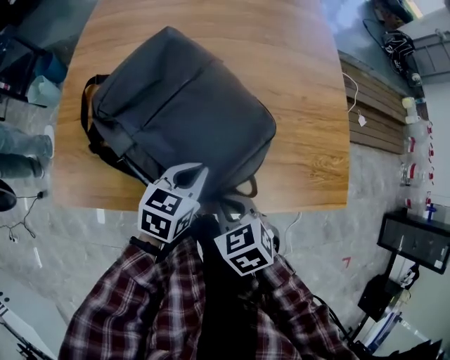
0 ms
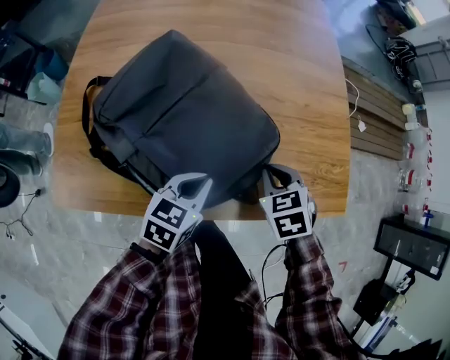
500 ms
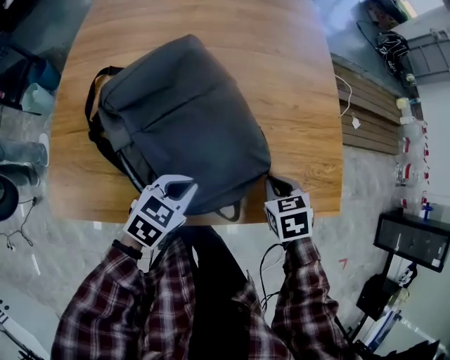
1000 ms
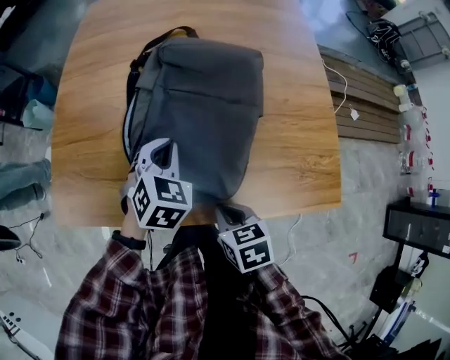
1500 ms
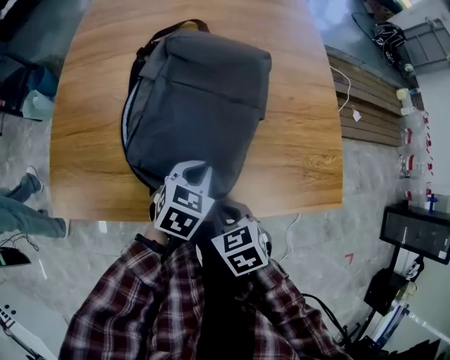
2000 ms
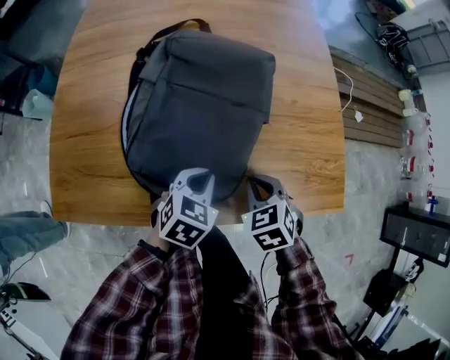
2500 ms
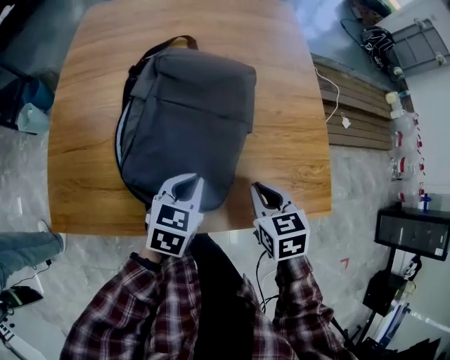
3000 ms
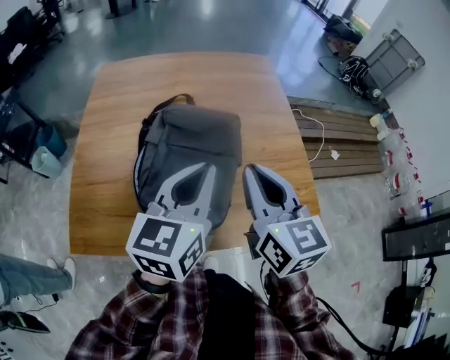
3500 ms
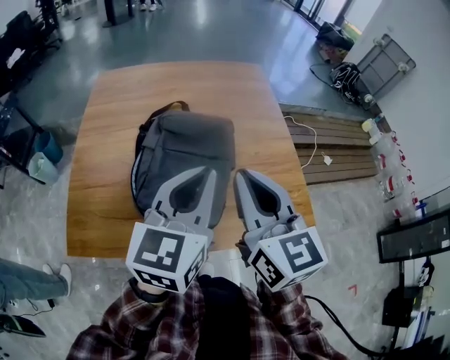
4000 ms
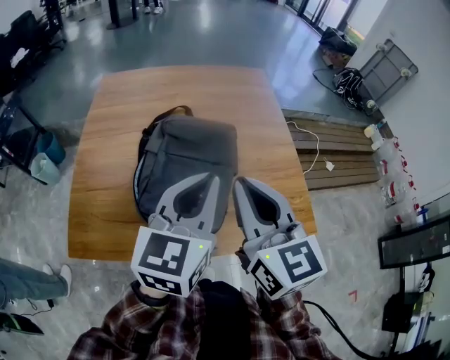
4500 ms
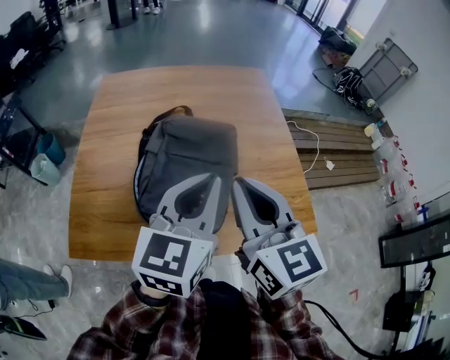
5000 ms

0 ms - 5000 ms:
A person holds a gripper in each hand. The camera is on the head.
0 ms - 2500 ms: The left gripper changes its angle by about 20 degrees. Meanwhile the right gripper changes place by roughly 15 cm.
2500 ms - 5000 ms: The two grippers go some 35 cm upward. The right gripper angles its fingers upward, by about 50 degrees. Meanwhile the left gripper points its fingers about 40 degrees further upward.

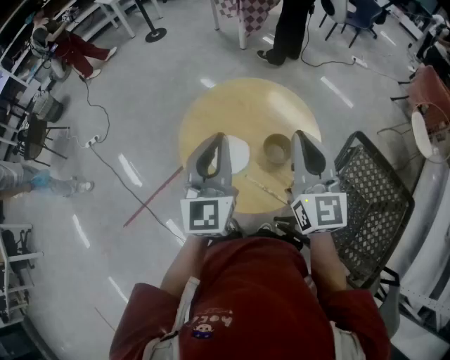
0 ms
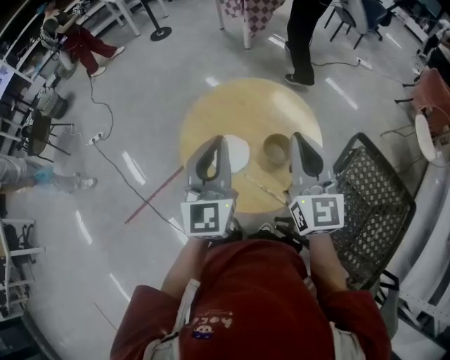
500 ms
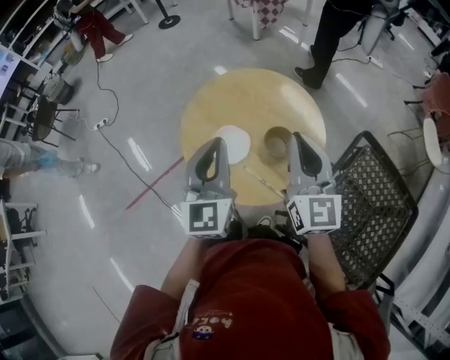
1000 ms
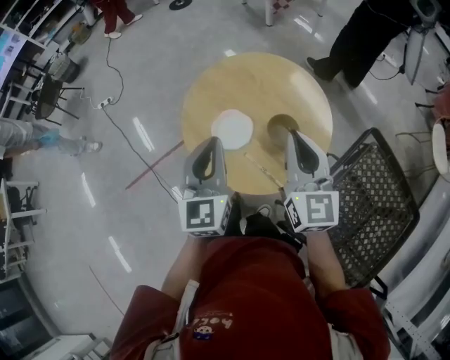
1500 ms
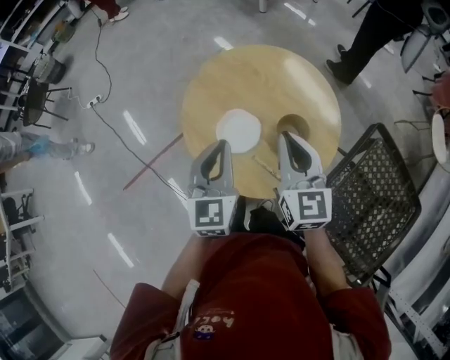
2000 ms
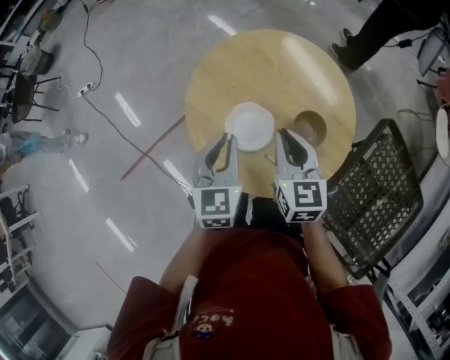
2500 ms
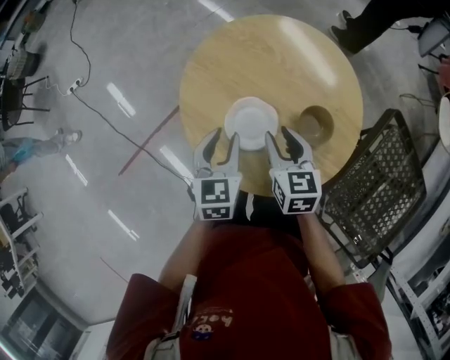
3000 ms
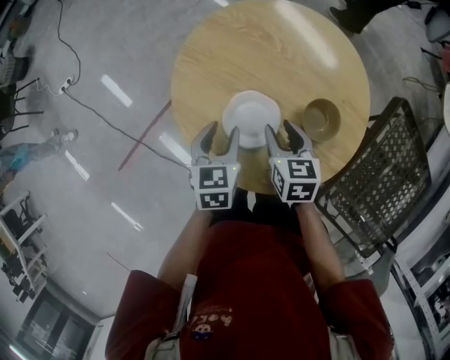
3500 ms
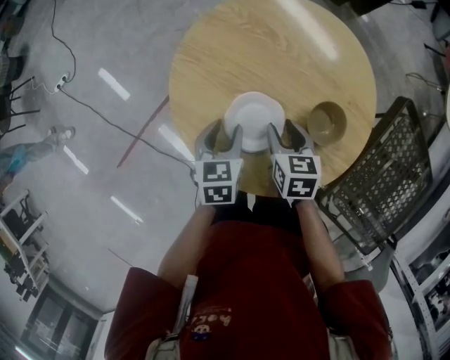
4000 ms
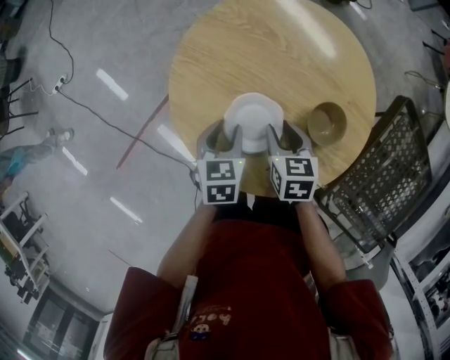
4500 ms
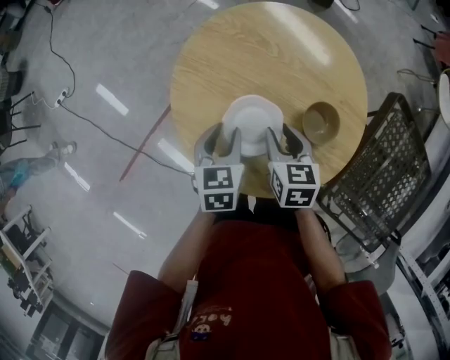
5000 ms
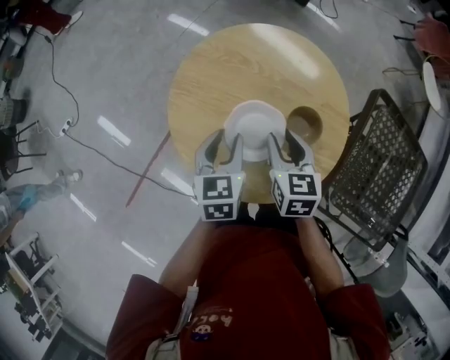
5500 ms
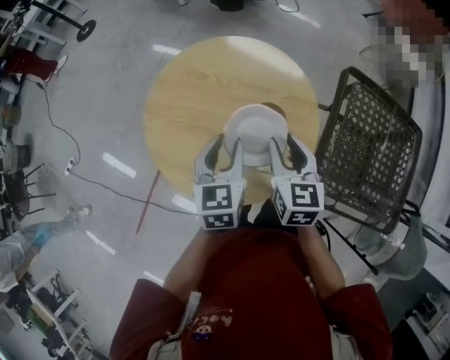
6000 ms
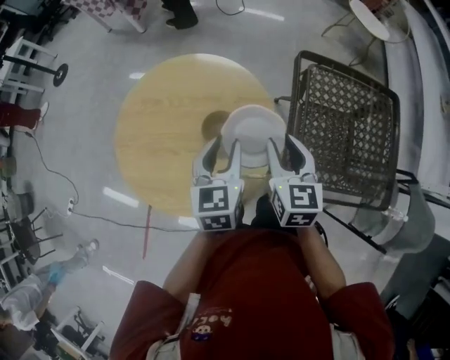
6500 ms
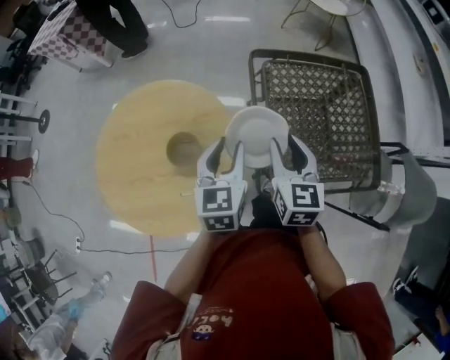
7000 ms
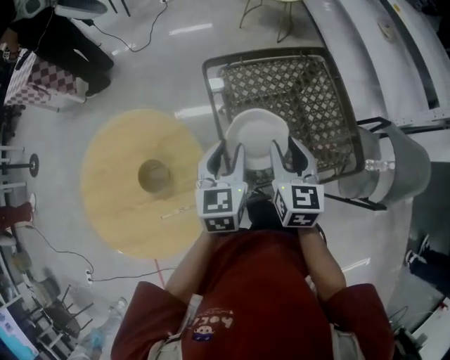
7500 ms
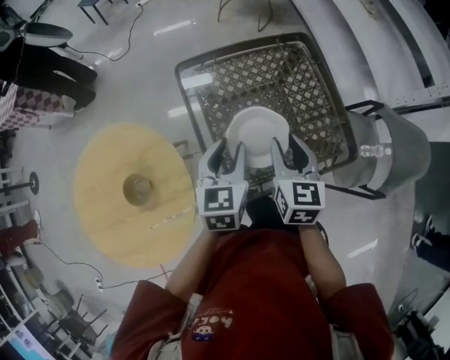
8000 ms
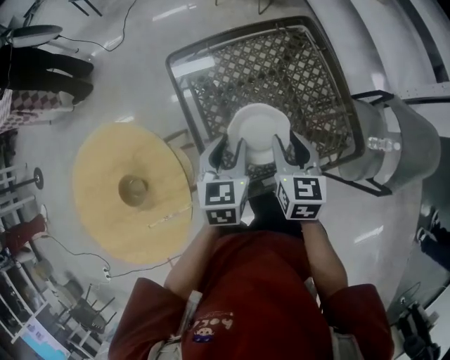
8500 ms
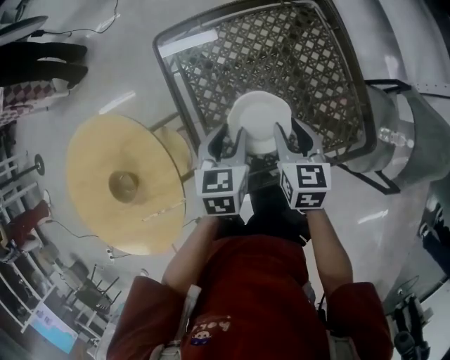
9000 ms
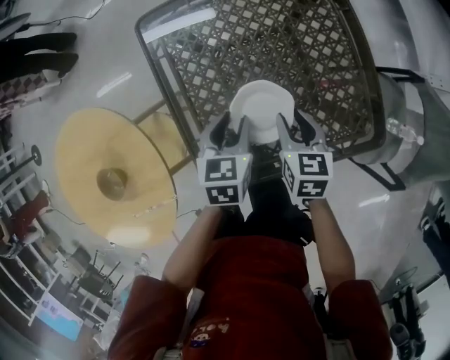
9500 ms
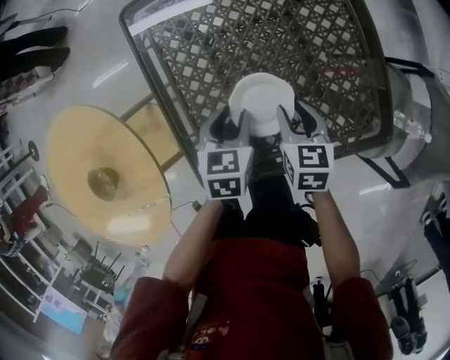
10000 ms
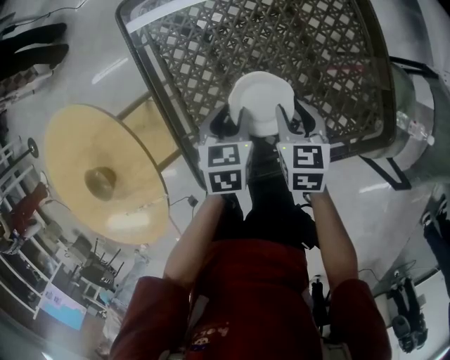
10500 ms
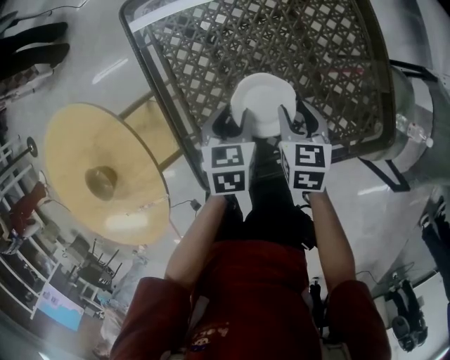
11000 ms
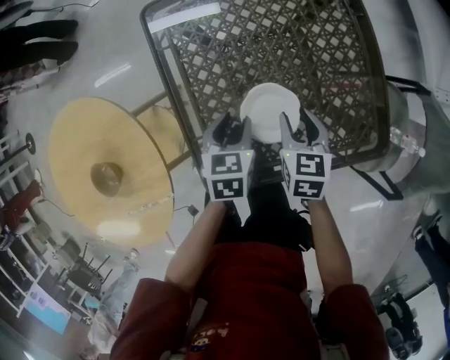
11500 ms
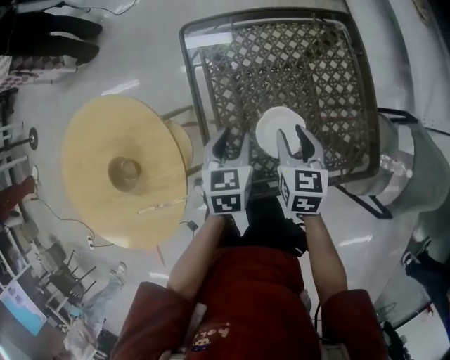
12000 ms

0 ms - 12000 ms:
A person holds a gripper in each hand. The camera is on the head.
0 ms - 2000 ms: Both grippers travel together downward, about 10 cm.
2000 ms - 4000 ms: Both grippers move downward, some 25 cm. The right gripper tips its fingers downward by about 40 degrees, and opens up; the left gripper angles its fingers downward, by some 30 degrees, and opens.
4000 ms - 6000 ms: The grippers both shift upward and to the right by some 20 cm. The left gripper turns by approximately 20 degrees; the right gripper turns by roughly 30 degrees.
6000 ms - 8000 ms: Both grippers are carried roughly 50 cm. The right gripper swivels approximately 40 degrees. Meanwhile the left gripper turns by about 40 degrees.
8000 ms - 10000 ms: Both grippers move downward, roughly 25 cm. The left gripper swivels some 20 degrees, while the right gripper swivels roughly 20 degrees.
10000 ms - 12000 ms: The grippers both shift upward and to the left by approximately 10 cm.

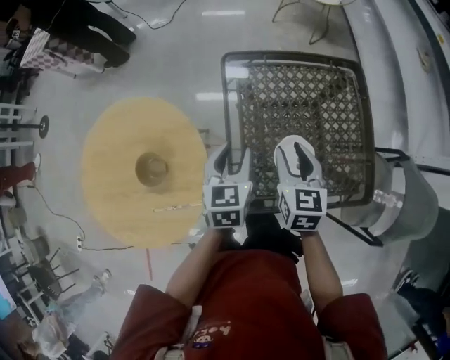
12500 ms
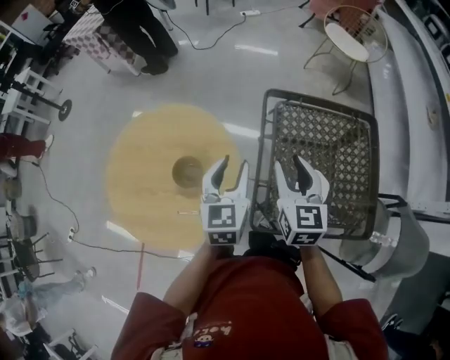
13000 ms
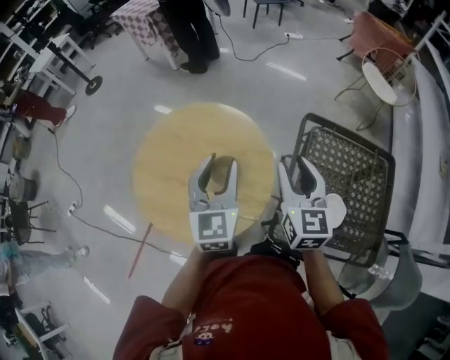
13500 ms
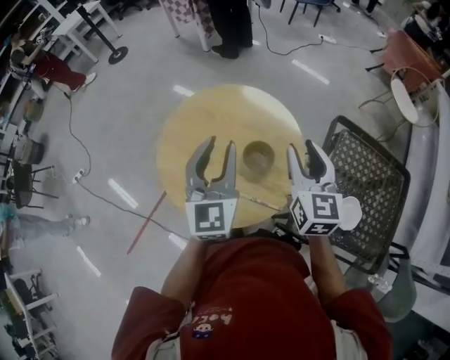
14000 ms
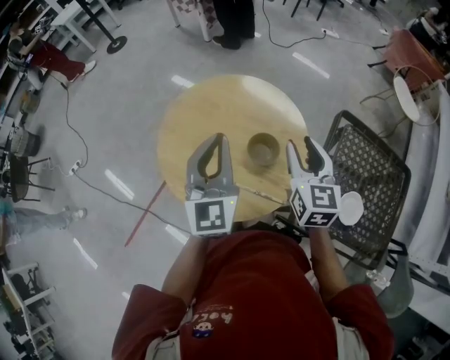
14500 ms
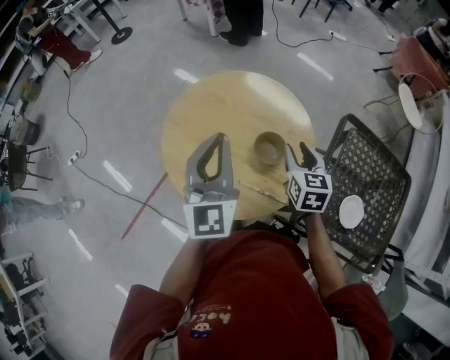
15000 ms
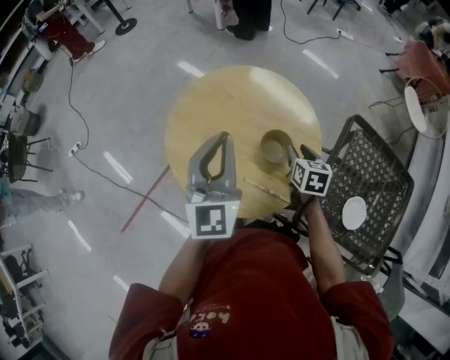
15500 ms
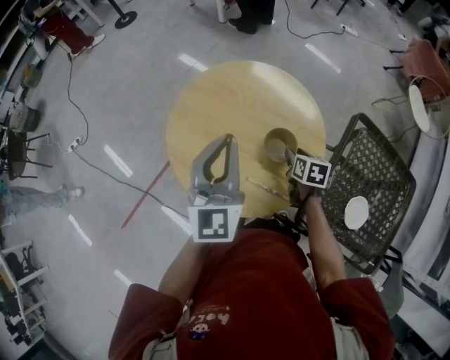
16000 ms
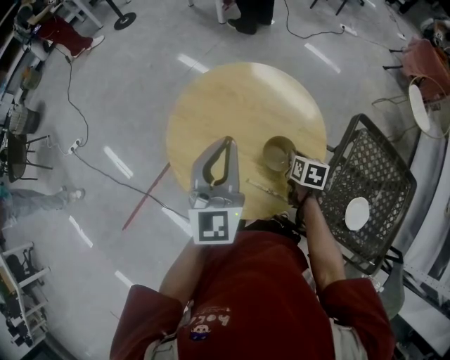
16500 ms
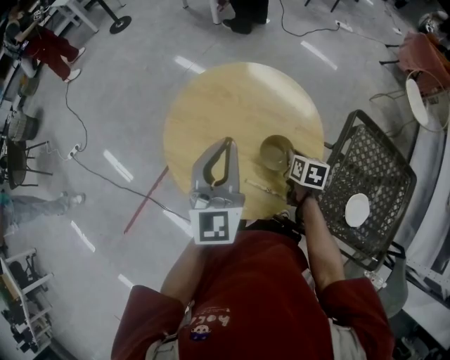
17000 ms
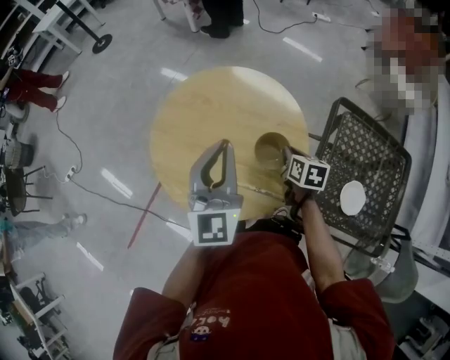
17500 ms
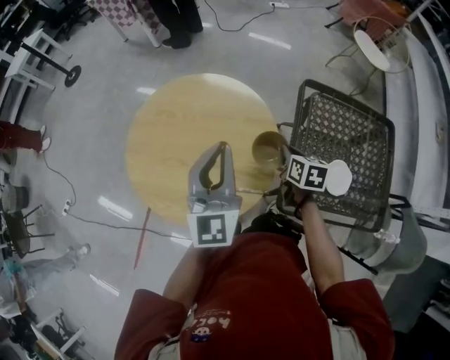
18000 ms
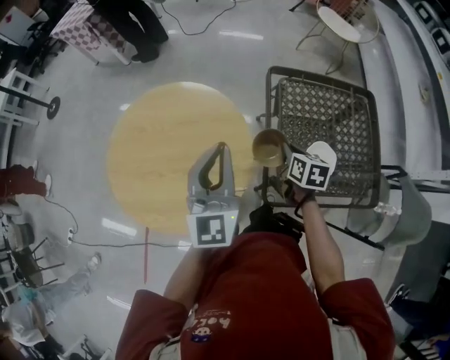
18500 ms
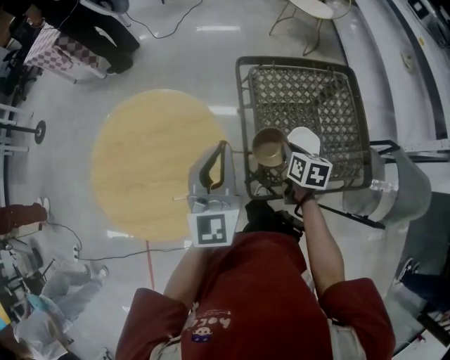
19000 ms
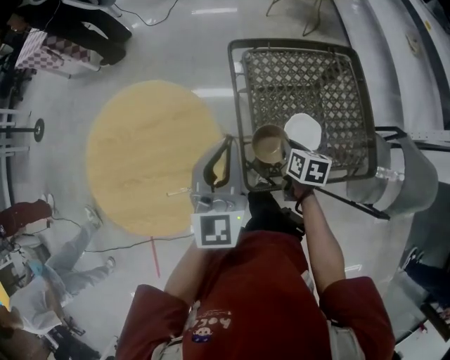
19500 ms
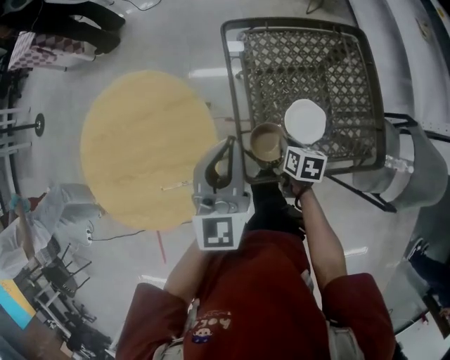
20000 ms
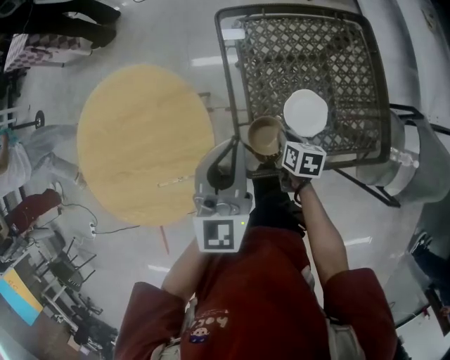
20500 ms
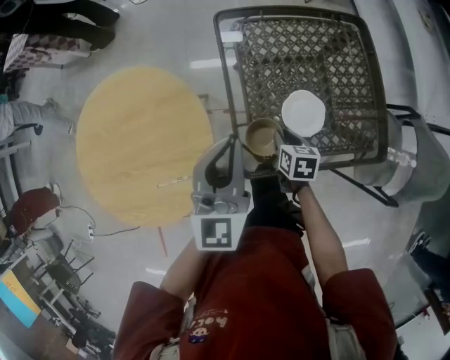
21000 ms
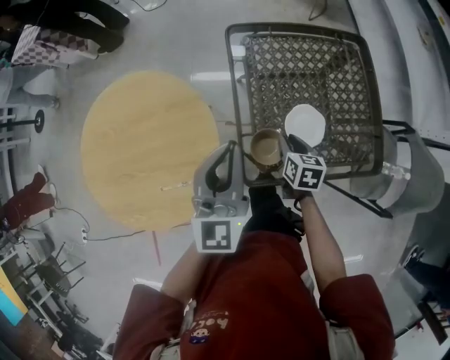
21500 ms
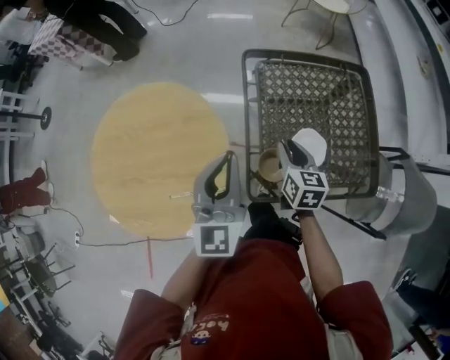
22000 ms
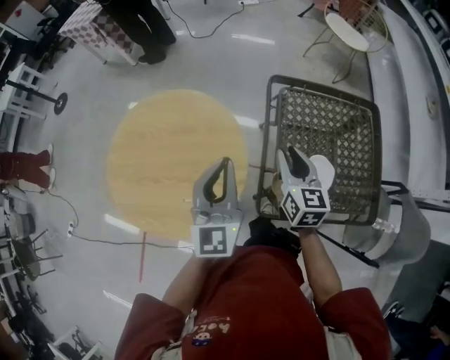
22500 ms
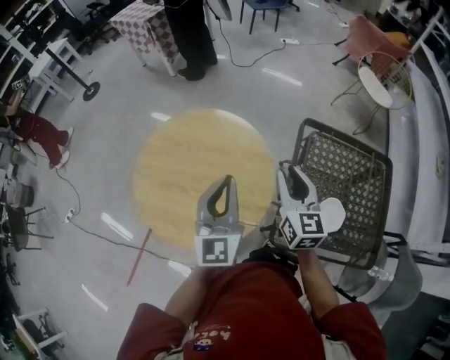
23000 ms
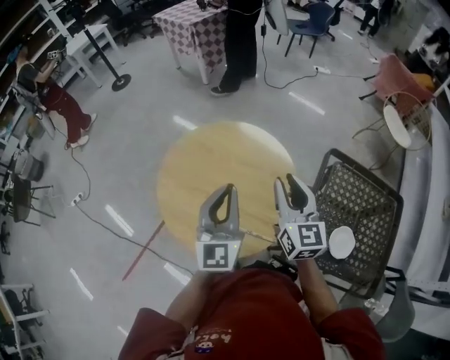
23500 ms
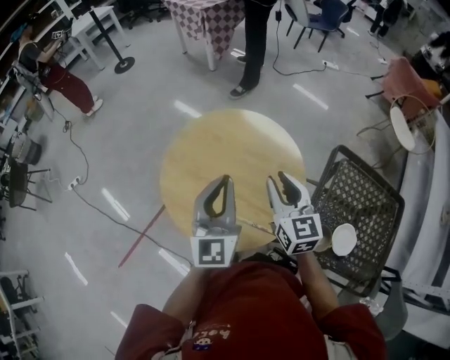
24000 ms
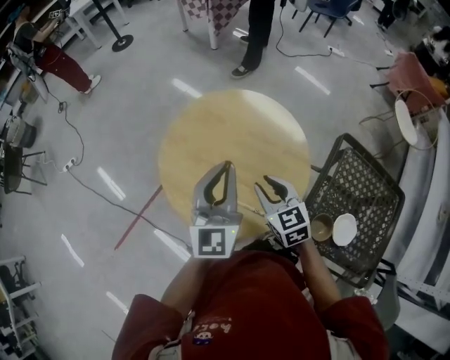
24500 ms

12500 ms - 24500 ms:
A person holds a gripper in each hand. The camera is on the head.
12500 ms - 14500 ms: The left gripper moves some 50 cm, tilts its fingers about 40 degrees upward, and closes; the right gripper moves roughly 40 cm, and changes its angle by some 30 degrees.
14500 ms - 16500 ms: The right gripper heads downward, covering approximately 25 cm, points its fingers roughly 40 degrees further downward, and closes up.
16500 ms - 18500 ms: The right gripper ends up approximately 25 cm from where it was, and changes its angle by approximately 30 degrees, while the left gripper changes place by roughly 20 cm, and rotates approximately 30 degrees.
18500 ms - 20500 ms: The right gripper is displaced downward, to the right and backward by some 20 cm. Meanwhile the left gripper is displaced to the right and downward by some 20 cm.
20500 ms - 22500 ms: The right gripper travels upward and to the left by roughly 25 cm, tips its fingers upward by about 30 degrees, and opens up. Meanwhile the left gripper is displaced to the left and upward by some 15 cm, and changes its angle by about 20 degrees.
22500 ms - 24500 ms: The left gripper ends up roughly 25 cm from where it was, and changes its angle by about 20 degrees. The right gripper goes upward and returns, approximately 10 cm each way, and rotates approximately 50 degrees.
